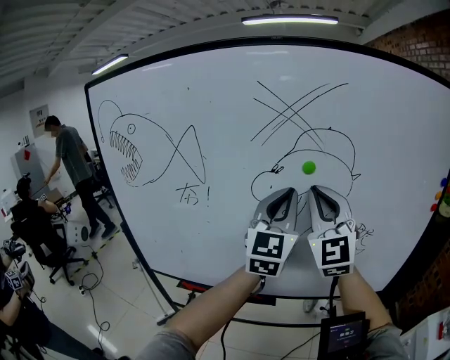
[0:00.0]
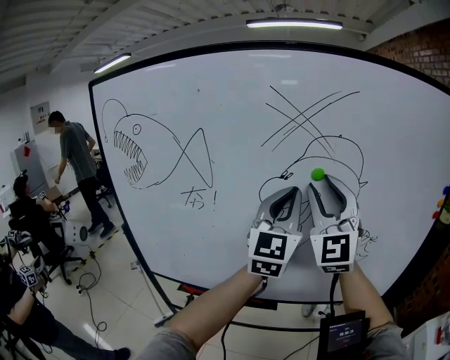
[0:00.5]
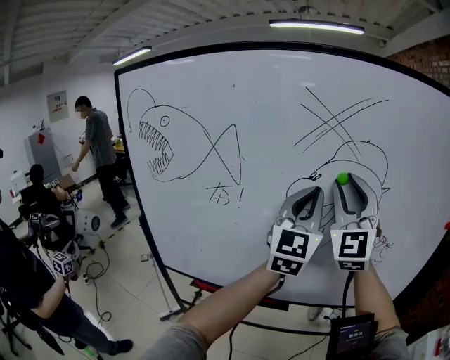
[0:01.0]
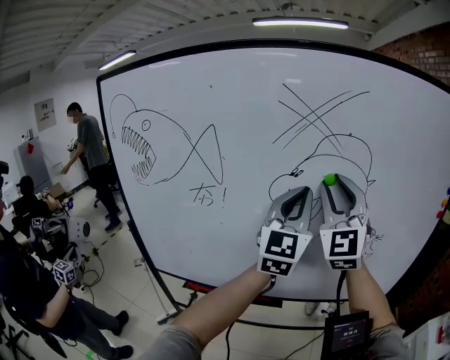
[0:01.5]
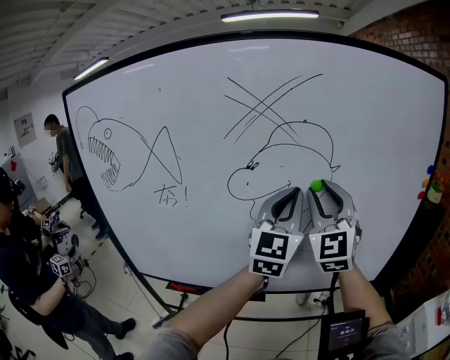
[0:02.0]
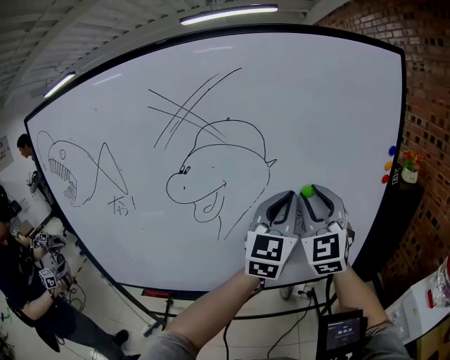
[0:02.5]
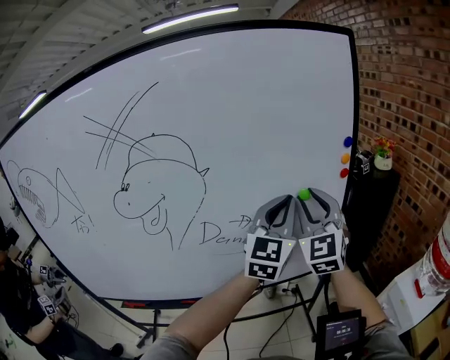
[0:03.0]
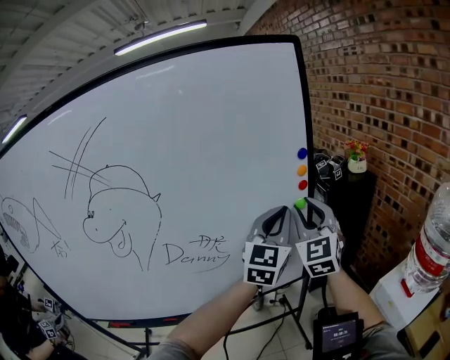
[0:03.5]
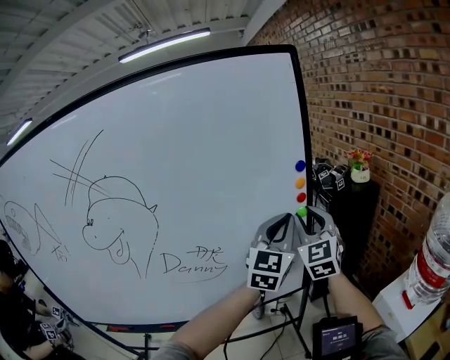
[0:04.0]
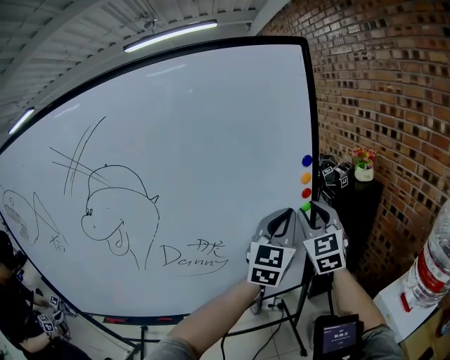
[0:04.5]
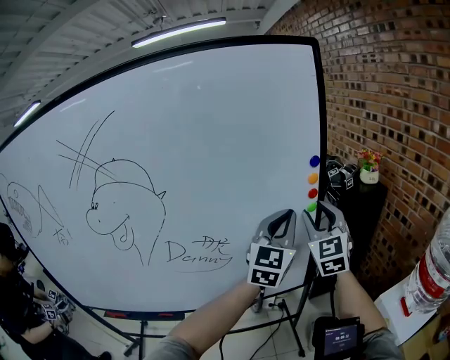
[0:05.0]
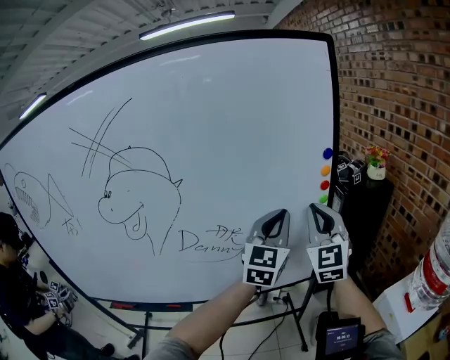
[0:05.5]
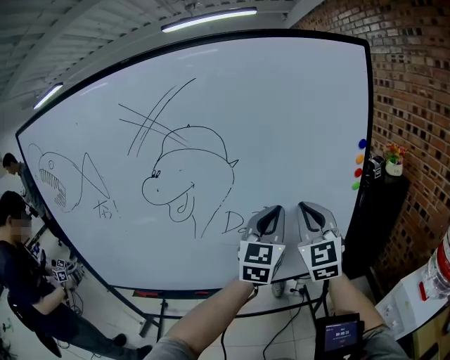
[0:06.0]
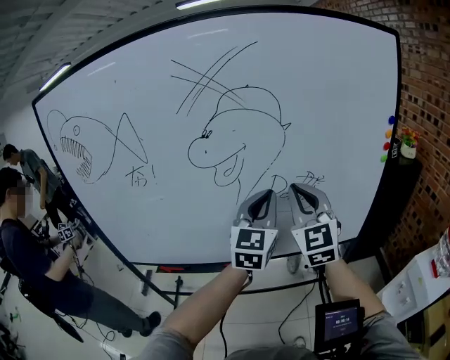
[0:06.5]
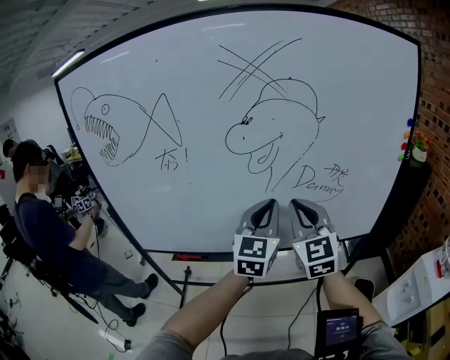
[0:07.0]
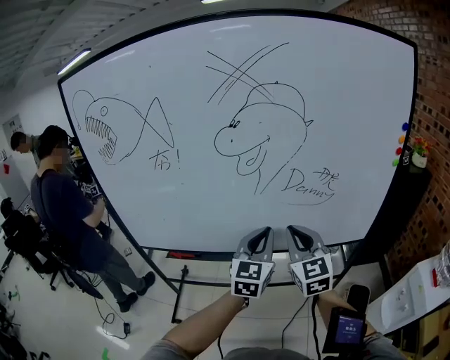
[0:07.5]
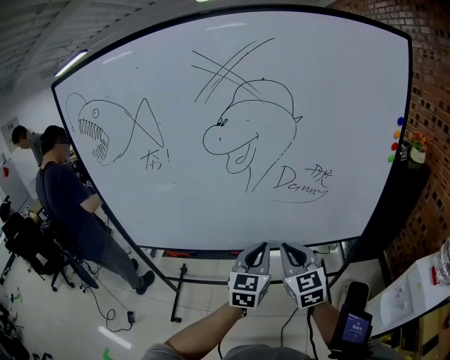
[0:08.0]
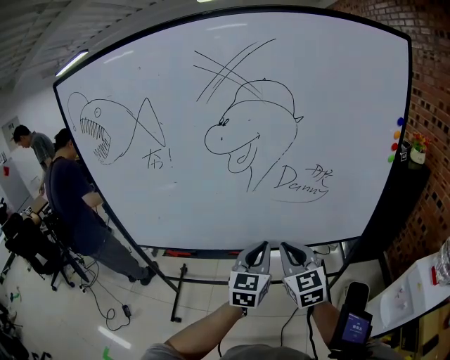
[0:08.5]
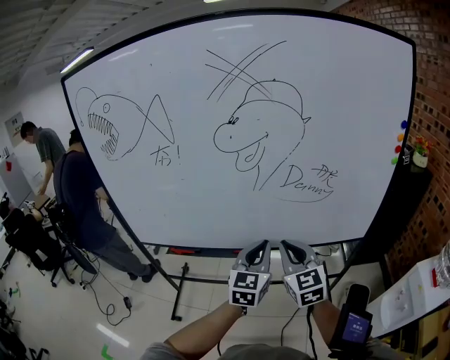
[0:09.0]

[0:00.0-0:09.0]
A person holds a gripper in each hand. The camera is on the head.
0:00.0 to 0:02.0: The grippers both shift to the right by roughly 5 cm. The right gripper opens.
0:02.0 to 0:04.5: The pair of grippers is taken to the right, some 40 cm. The left gripper rotates roughly 20 degrees. Meanwhile the right gripper swivels roughly 20 degrees.
0:04.5 to 0:07.0: The pair of grippers is taken to the left and backward, about 50 cm. The right gripper rotates about 20 degrees, and closes up; the left gripper turns by about 20 degrees.
0:07.0 to 0:09.0: Both grippers travel together downward and backward, roughly 15 cm.

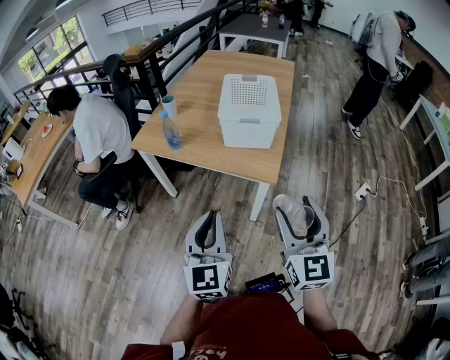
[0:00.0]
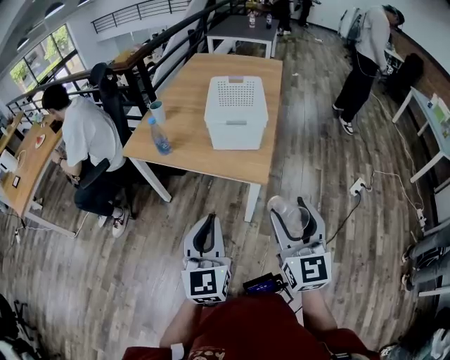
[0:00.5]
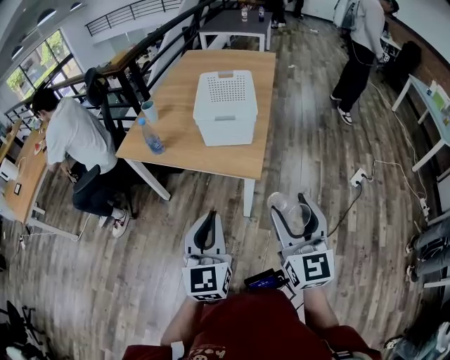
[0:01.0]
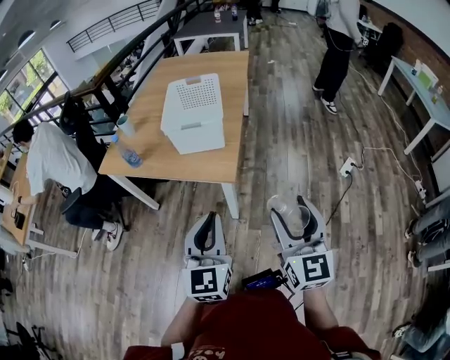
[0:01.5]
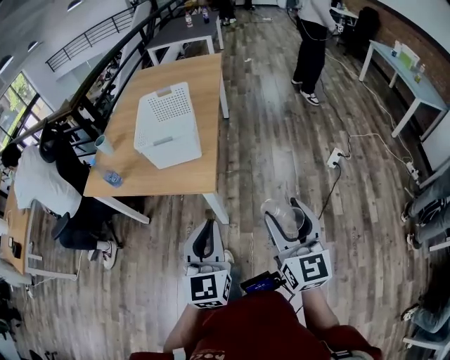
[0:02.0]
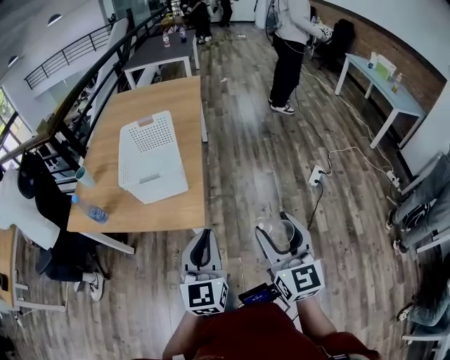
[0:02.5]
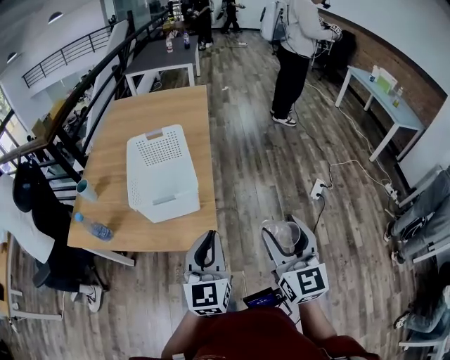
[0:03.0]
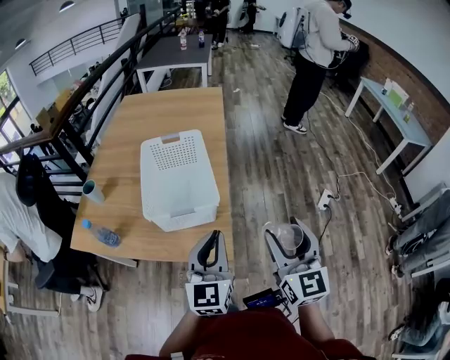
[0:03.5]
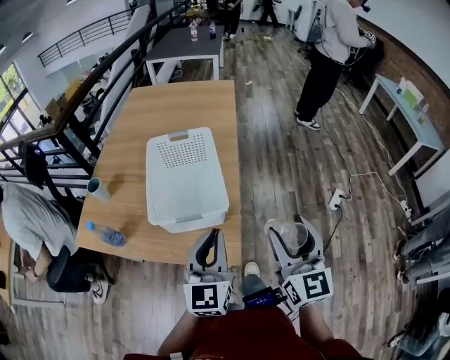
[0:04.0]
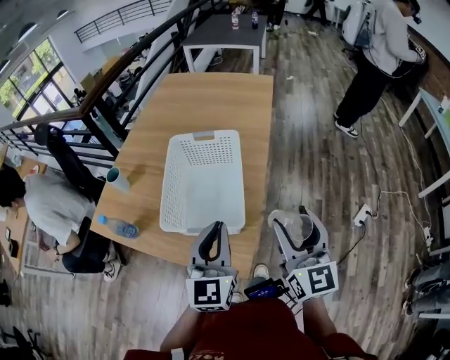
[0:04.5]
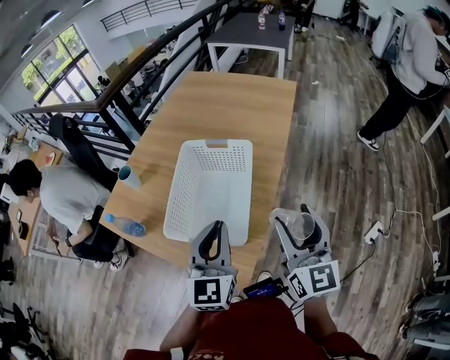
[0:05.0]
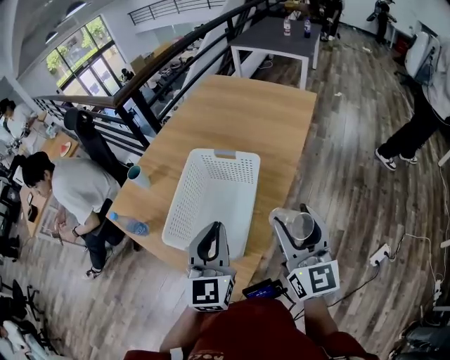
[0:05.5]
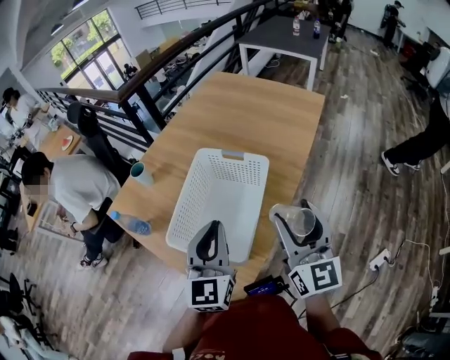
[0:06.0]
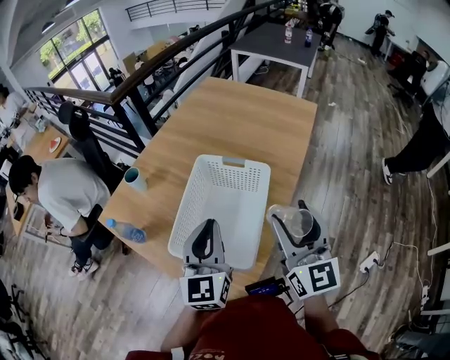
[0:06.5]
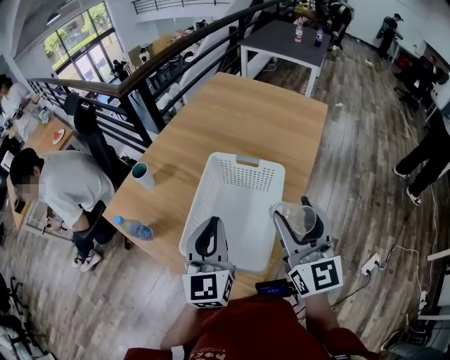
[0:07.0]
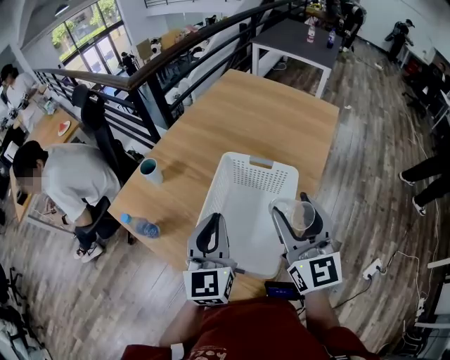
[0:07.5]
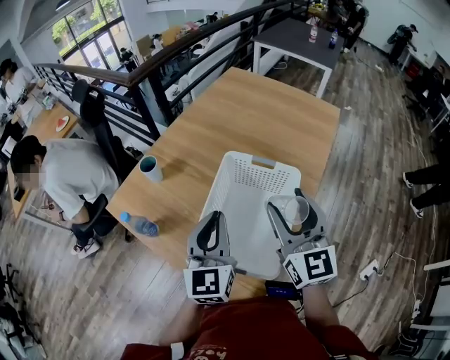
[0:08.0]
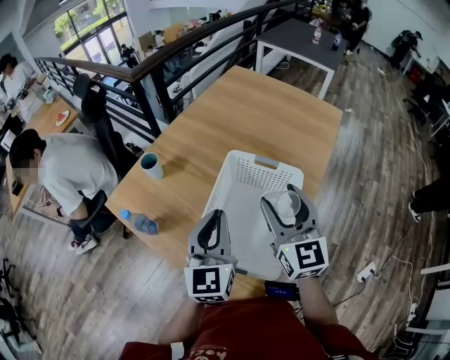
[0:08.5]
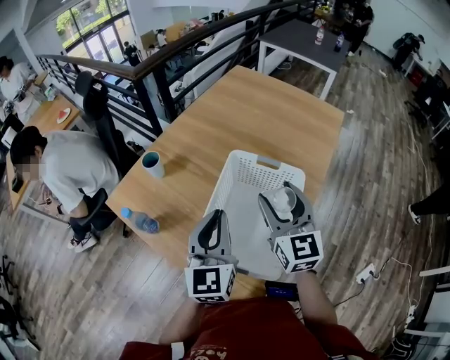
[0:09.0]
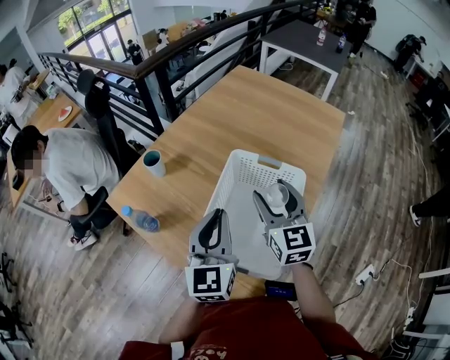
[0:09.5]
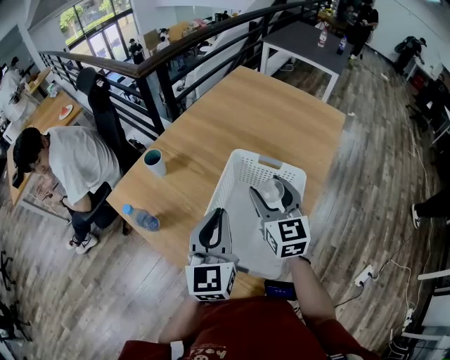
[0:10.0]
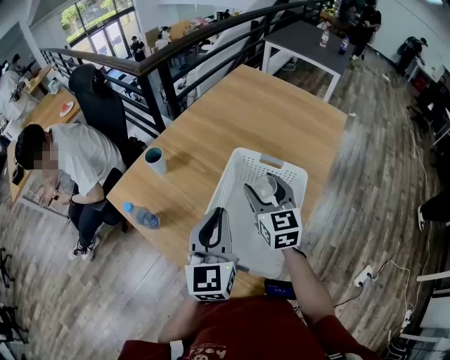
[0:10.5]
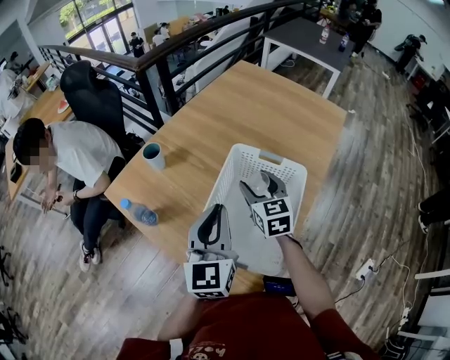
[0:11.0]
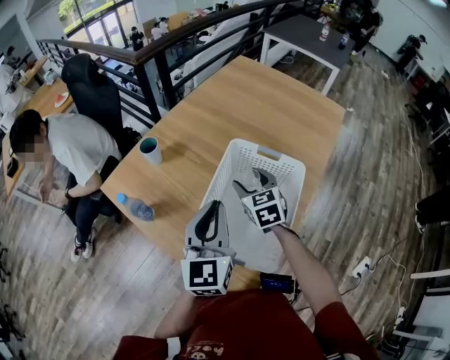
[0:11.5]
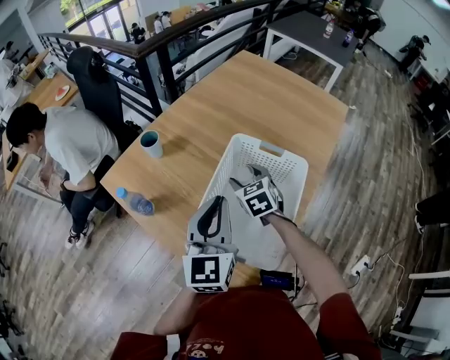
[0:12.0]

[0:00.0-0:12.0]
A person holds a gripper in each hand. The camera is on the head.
0:00.0 to 0:02.0: Both grippers travel together to the right, about 20 cm.
0:02.0 to 0:04.0: The left gripper travels forward by about 25 cm. Meanwhile the right gripper is displaced forward and to the left by roughly 25 cm.
0:04.0 to 0:06.0: The left gripper moves some 15 cm, and rotates approximately 30 degrees; the right gripper ends up some 25 cm from where it was, and changes its angle by approximately 30 degrees.
0:06.0 to 0:08.0: The two grippers go some 10 cm to the left and forward.
0:08.0 to 0:10.0: The right gripper goes some 10 cm forward and downward.
0:10.0 to 0:12.0: The right gripper shifts about 15 cm downward, and points its fingers about 30 degrees further downward.

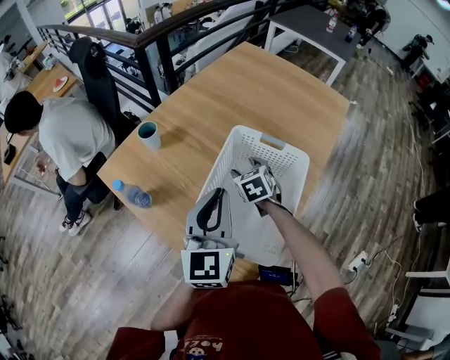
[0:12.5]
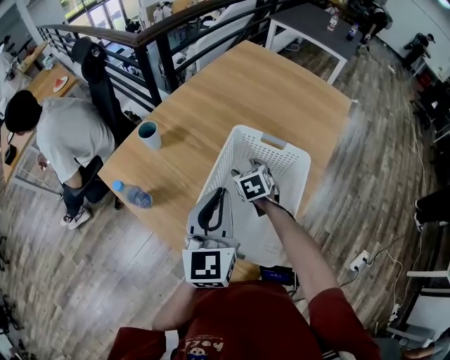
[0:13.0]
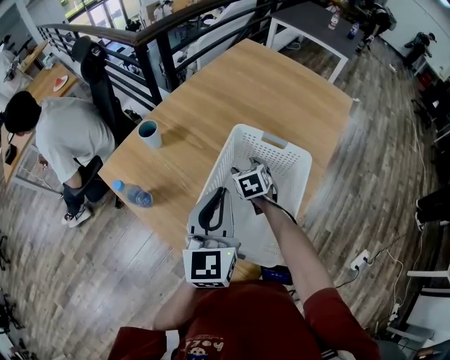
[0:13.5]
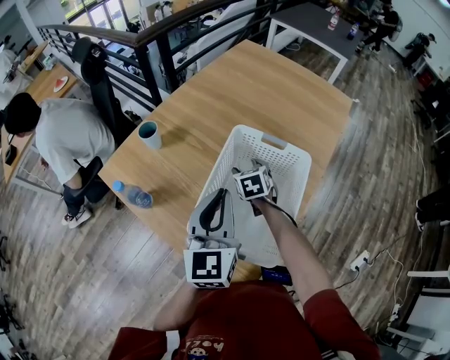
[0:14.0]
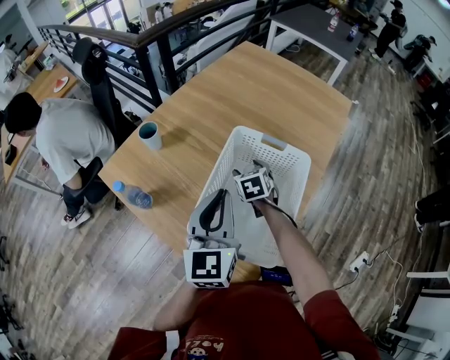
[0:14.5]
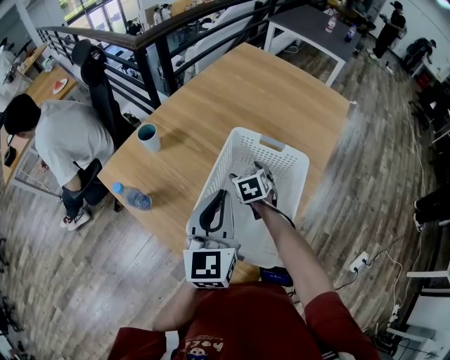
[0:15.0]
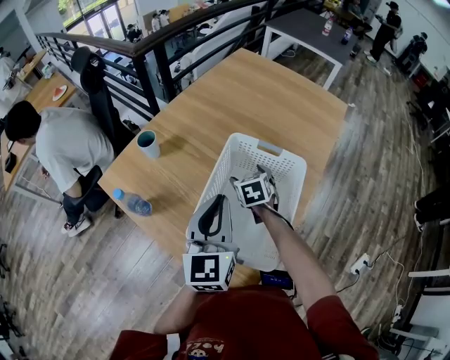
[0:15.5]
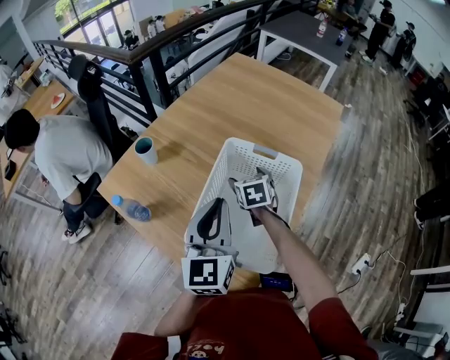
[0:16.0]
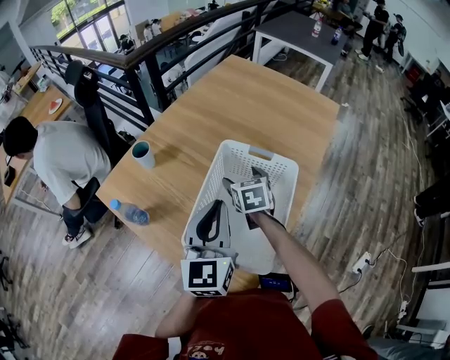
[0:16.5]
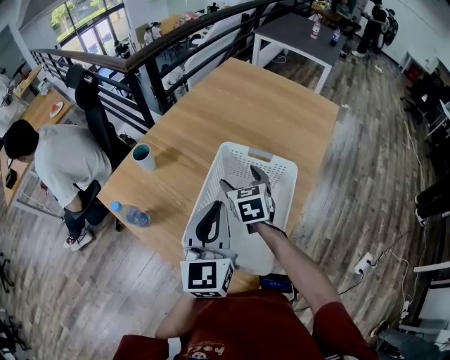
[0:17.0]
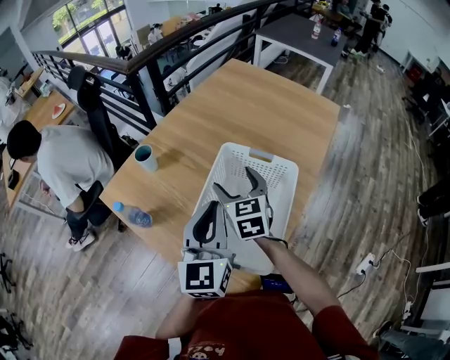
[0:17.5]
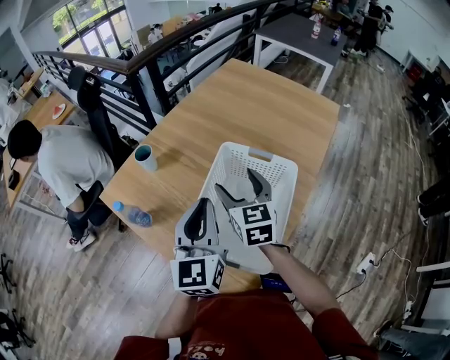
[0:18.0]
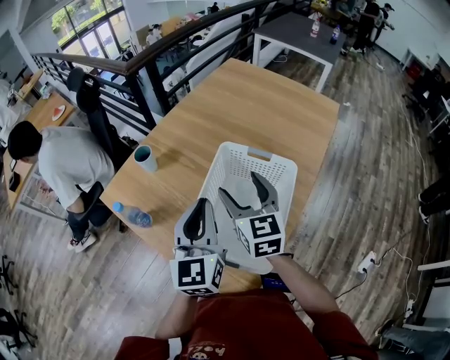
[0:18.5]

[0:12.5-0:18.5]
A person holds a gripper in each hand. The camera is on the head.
0:12.5 to 0:14.5: The grippers stay close to where they were, moving slightly.
0:14.5 to 0:16.5: The right gripper moves upward, about 5 cm.
0:16.5 to 0:18.5: The right gripper is displaced upward and backward by approximately 15 cm, and rotates about 30 degrees.
